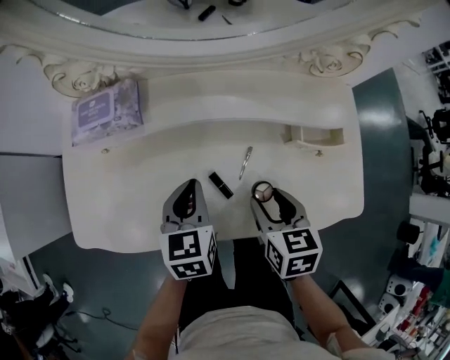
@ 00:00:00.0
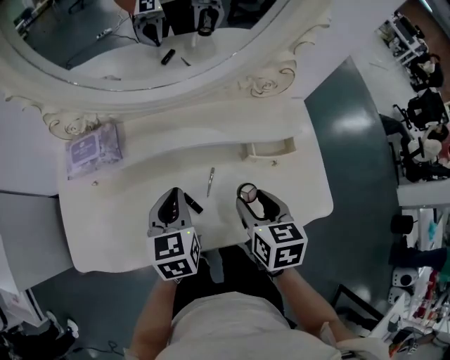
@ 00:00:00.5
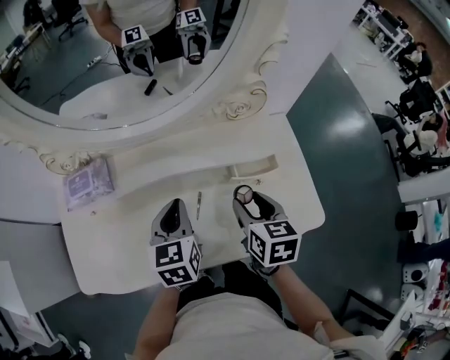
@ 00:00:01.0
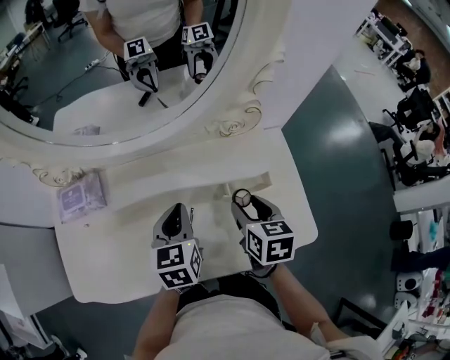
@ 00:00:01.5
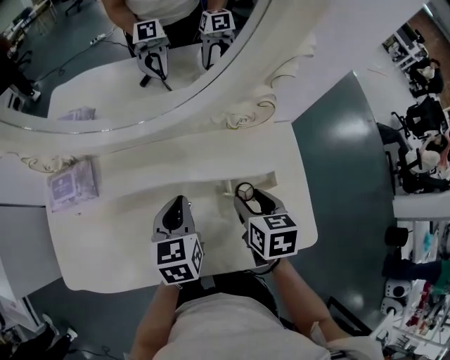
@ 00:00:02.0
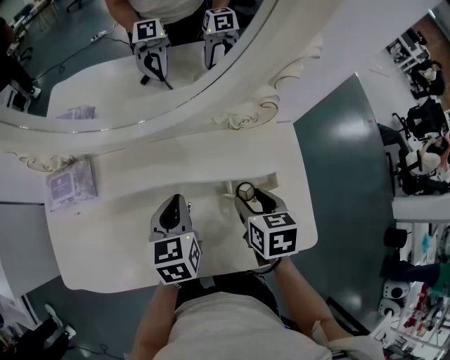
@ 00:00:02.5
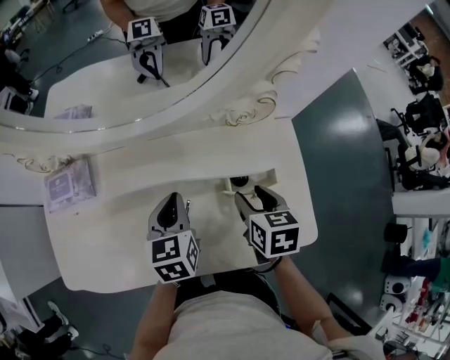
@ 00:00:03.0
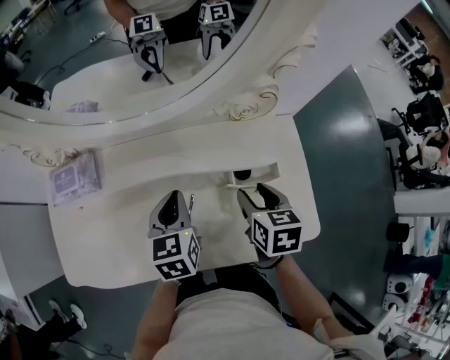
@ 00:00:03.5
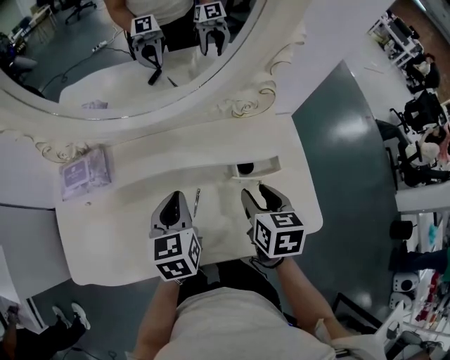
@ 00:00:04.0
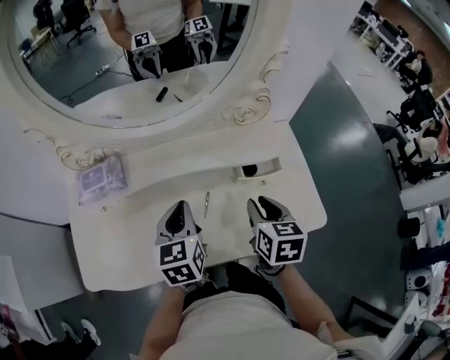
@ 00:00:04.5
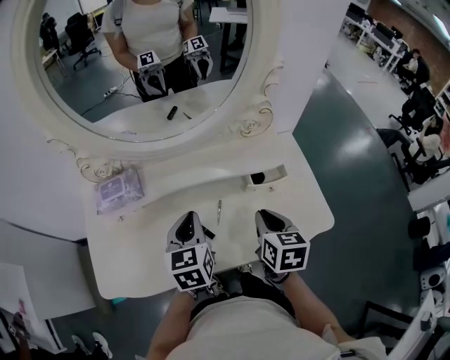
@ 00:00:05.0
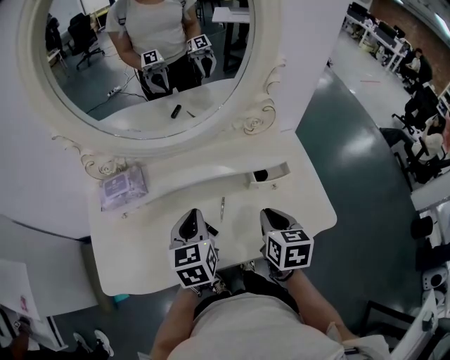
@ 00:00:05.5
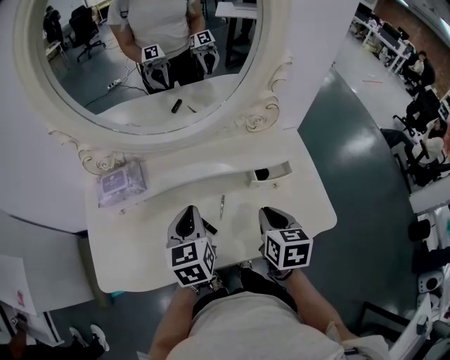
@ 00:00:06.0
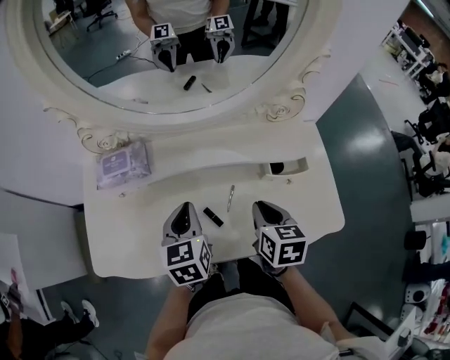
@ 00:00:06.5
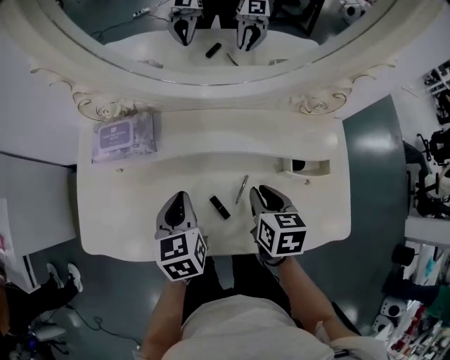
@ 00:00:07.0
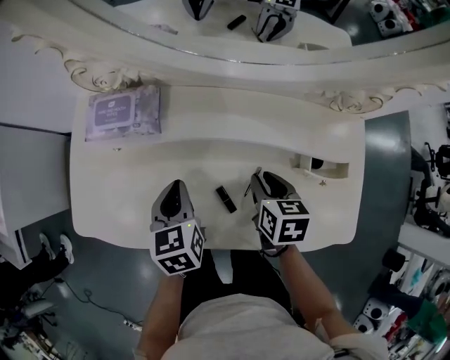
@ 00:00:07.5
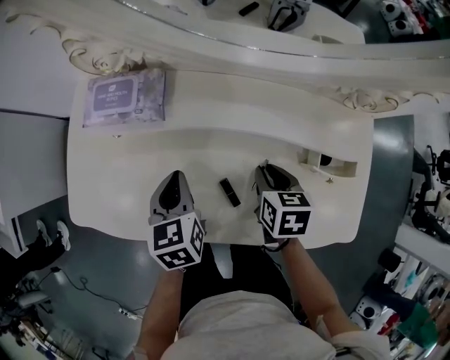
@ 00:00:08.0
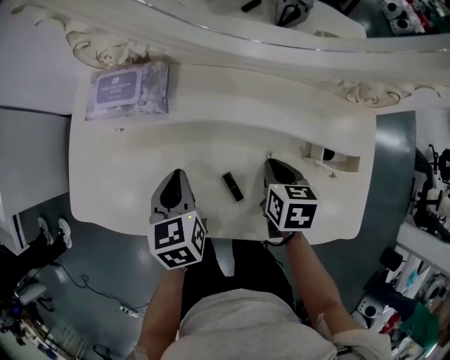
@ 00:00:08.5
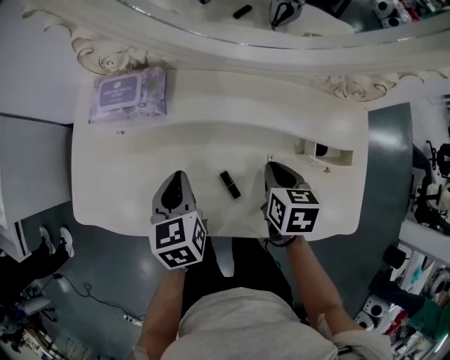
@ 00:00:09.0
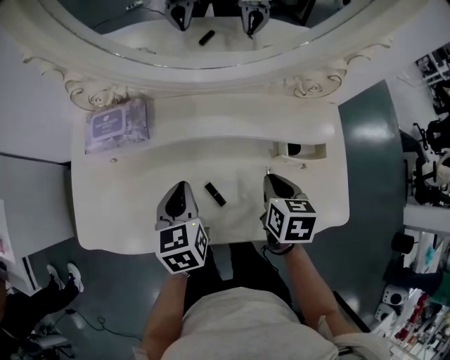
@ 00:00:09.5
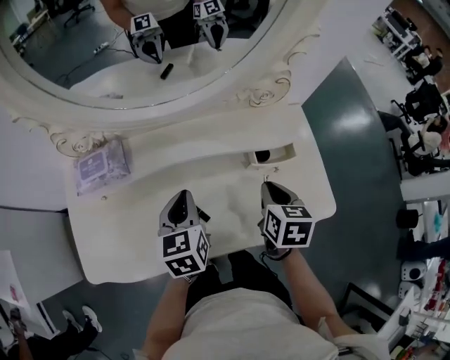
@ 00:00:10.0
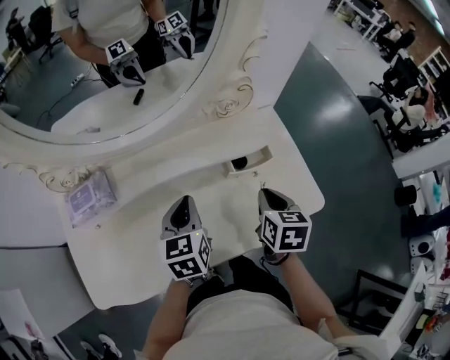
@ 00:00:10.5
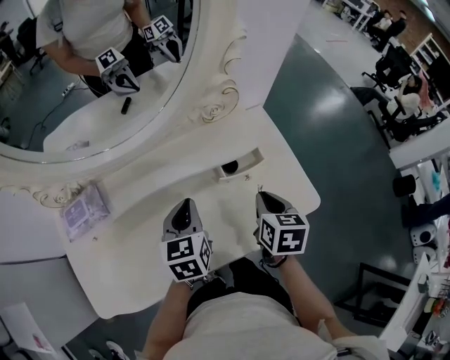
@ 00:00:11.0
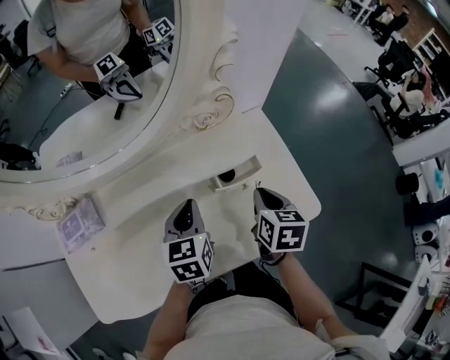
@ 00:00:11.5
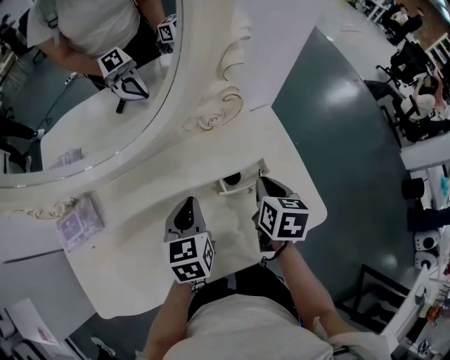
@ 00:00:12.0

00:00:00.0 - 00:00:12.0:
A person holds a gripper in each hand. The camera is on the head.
00:00:00.0 - 00:00:02.0: The grippers both shift to the right and forward by approximately 15 cm.
00:00:02.0 - 00:00:04.0: The left gripper shifts by about 5 cm.
00:00:04.0 - 00:00:06.0: The left gripper moves approximately 5 cm. Meanwhile the right gripper shifts roughly 5 cm backward, and closes up.
00:00:06.0 - 00:00:08.0: The right gripper heads downward, forward and to the left, covering some 20 cm, and changes its angle by approximately 30 degrees, while the left gripper heads downward and to the left, covering about 15 cm, and rotates some 30 degrees.
00:00:08.0 - 00:00:10.0: The left gripper ends up roughly 15 cm from where it was, and turns by about 20 degrees, while the right gripper ends up approximately 15 cm from where it was, and changes its angle by about 30 degrees.
00:00:10.0 - 00:00:12.0: The grippers both shift to the right and forward by approximately 15 cm.

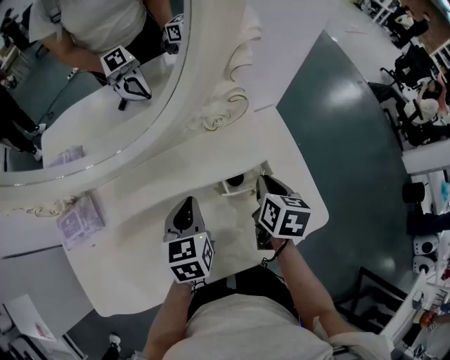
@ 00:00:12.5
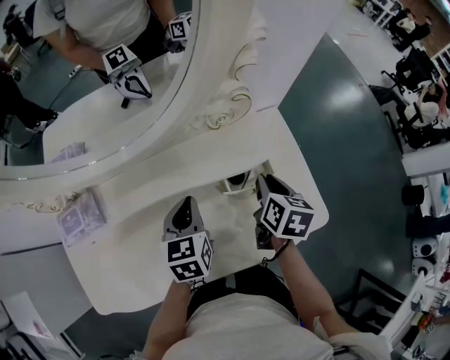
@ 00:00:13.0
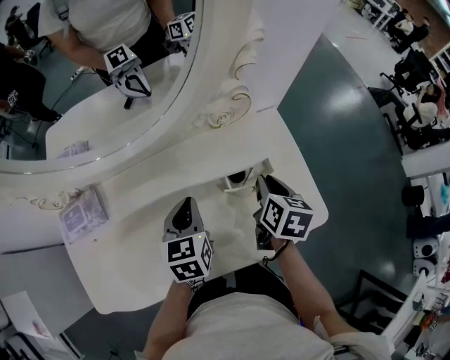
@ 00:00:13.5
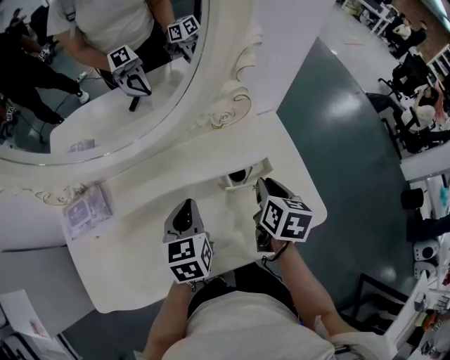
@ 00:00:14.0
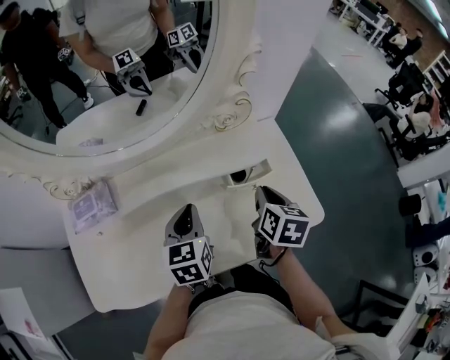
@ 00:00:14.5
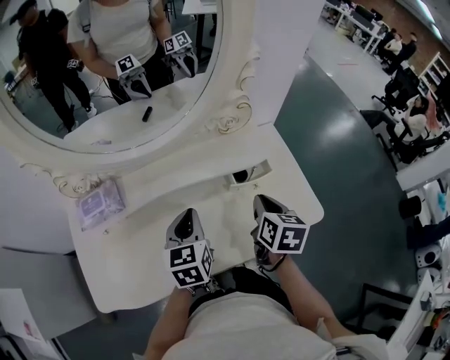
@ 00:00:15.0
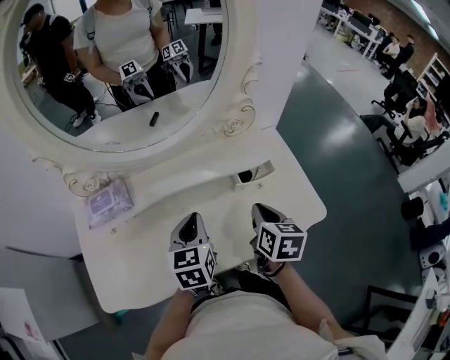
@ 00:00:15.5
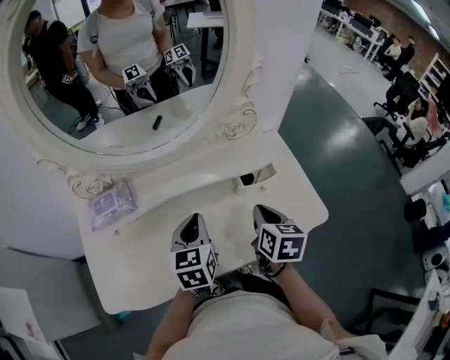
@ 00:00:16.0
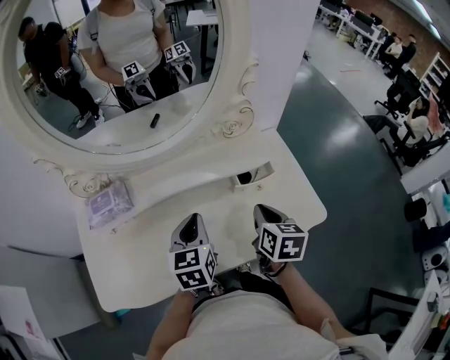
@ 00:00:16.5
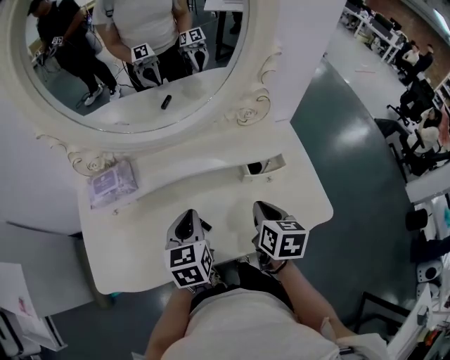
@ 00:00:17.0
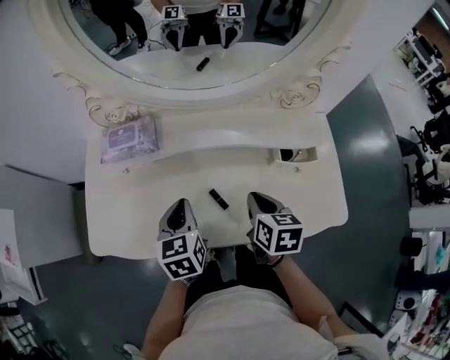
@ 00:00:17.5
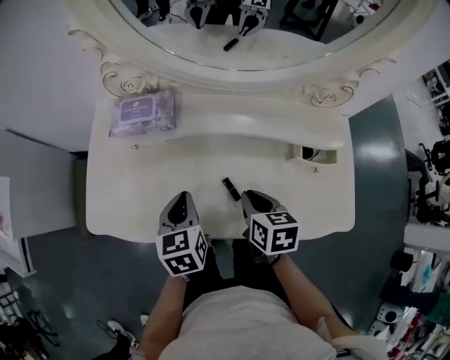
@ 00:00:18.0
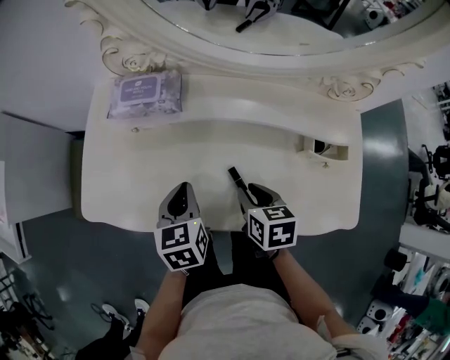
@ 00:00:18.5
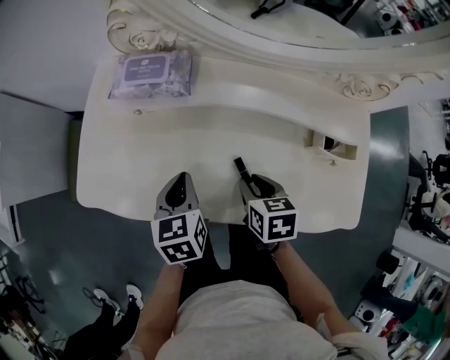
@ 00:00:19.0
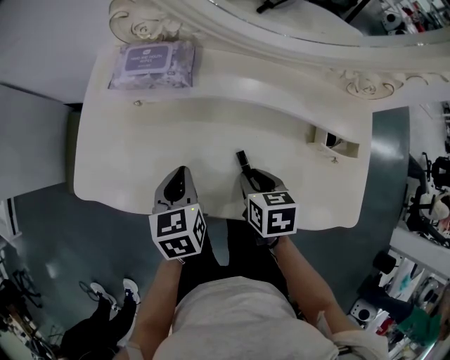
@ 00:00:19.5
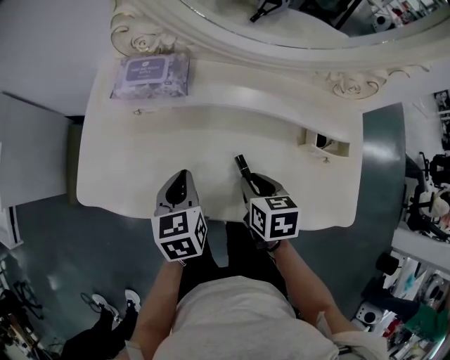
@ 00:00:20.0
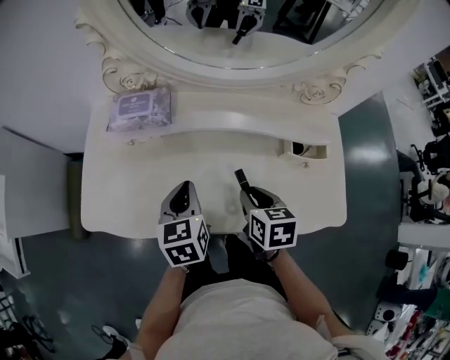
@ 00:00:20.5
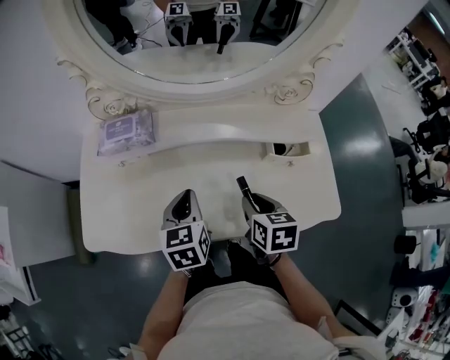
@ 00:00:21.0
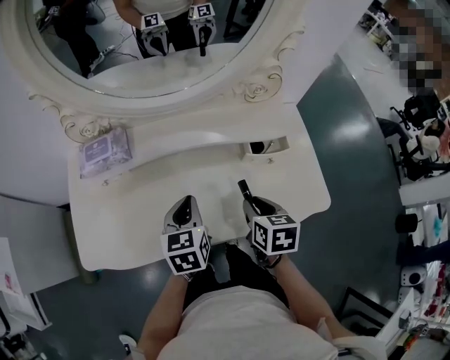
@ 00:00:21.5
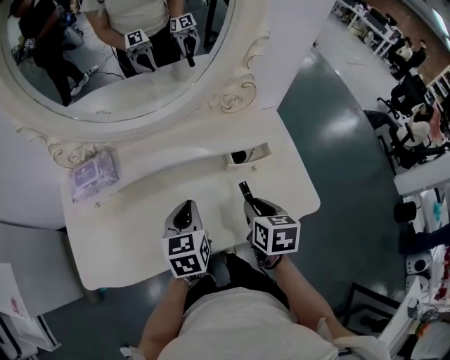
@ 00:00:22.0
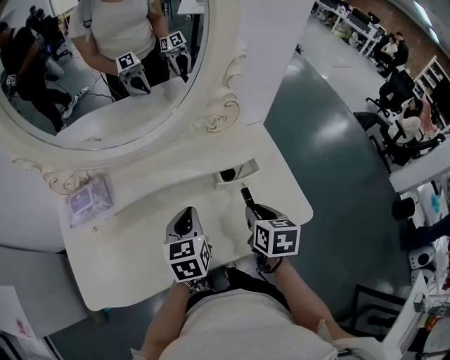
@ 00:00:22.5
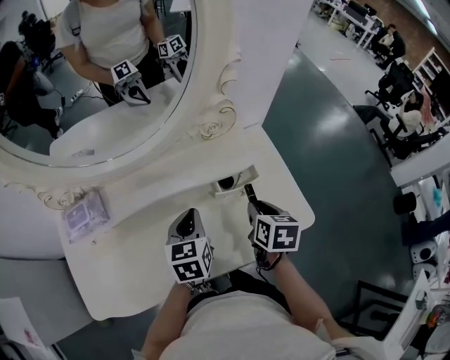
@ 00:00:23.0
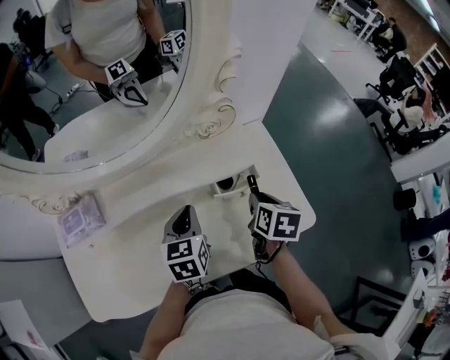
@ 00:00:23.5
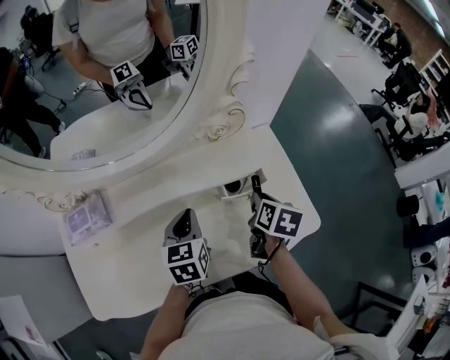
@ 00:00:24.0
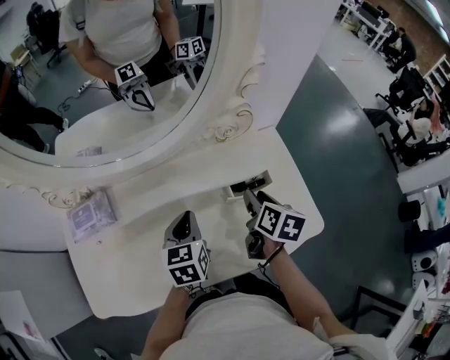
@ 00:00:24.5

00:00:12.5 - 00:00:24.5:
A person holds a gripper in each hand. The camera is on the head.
00:00:12.5 - 00:00:14.5: The two grippers go roughly 5 cm backward.
00:00:14.5 - 00:00:16.5: The right gripper heads backward, covering roughly 5 cm, while the left gripper shifts by some 5 cm.
00:00:16.5 - 00:00:18.5: The right gripper shifts by approximately 20 cm, turns by roughly 40 degrees, and opens up, while the left gripper ends up approximately 20 cm from where it was, and rotates some 30 degrees.
00:00:18.5 - 00:00:20.5: The right gripper moves about 5 cm.
00:00:20.5 - 00:00:22.5: The right gripper moves some 20 cm, and turns by roughly 30 degrees, while the left gripper shifts by approximately 20 cm, and turns by approximately 20 degrees.
00:00:22.5 - 00:00:24.5: The left gripper shifts by roughly 5 cm, while the right gripper shifts some 10 cm forward.

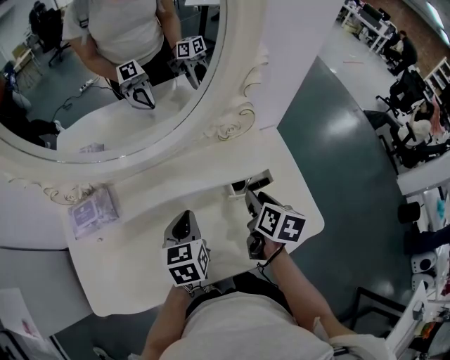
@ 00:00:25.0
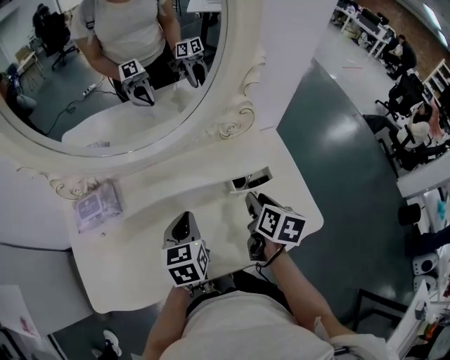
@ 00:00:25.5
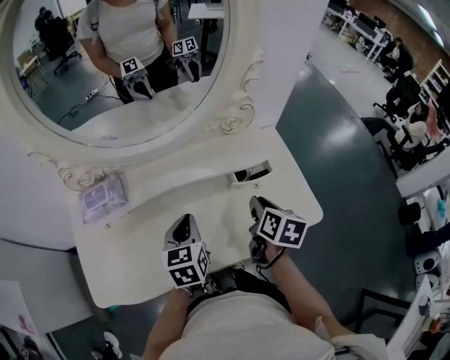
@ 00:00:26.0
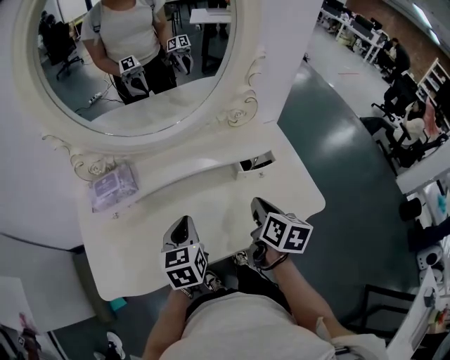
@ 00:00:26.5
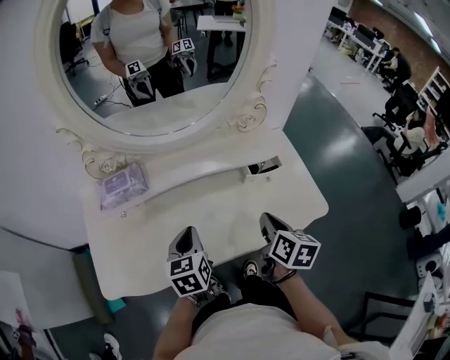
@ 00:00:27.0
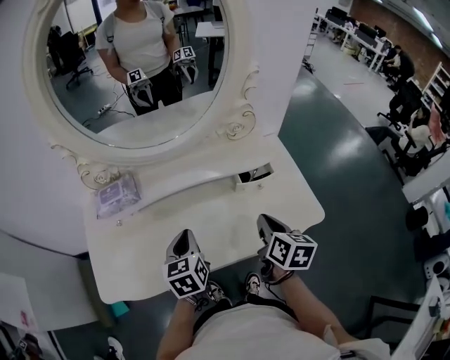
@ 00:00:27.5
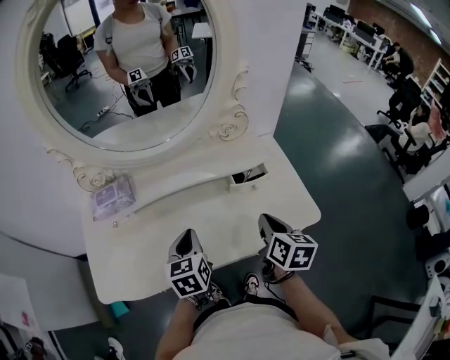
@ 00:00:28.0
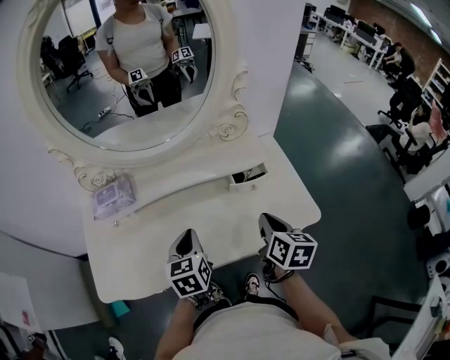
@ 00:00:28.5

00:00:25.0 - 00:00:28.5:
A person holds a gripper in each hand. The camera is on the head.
00:00:25.0 - 00:00:27.0: The left gripper heads backward and to the left, covering approximately 15 cm; the right gripper goes roughly 15 cm backward, and closes its fingers.
00:00:27.0 - 00:00:28.5: Both grippers move to the right, roughly 5 cm.
